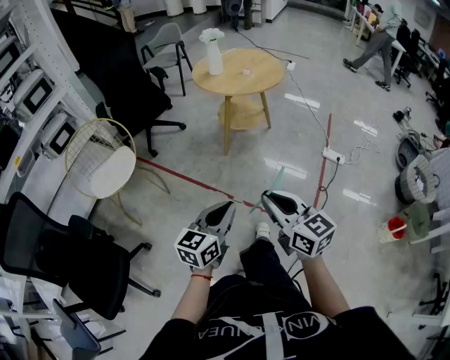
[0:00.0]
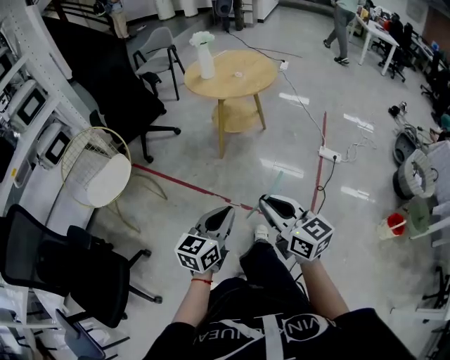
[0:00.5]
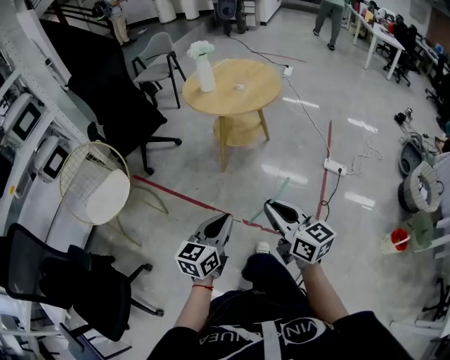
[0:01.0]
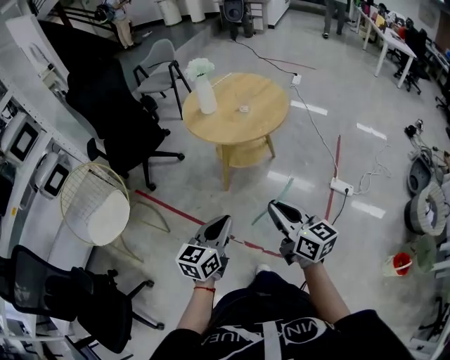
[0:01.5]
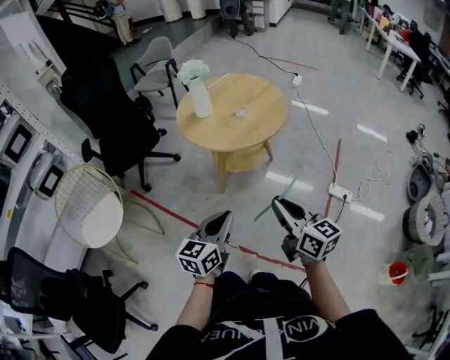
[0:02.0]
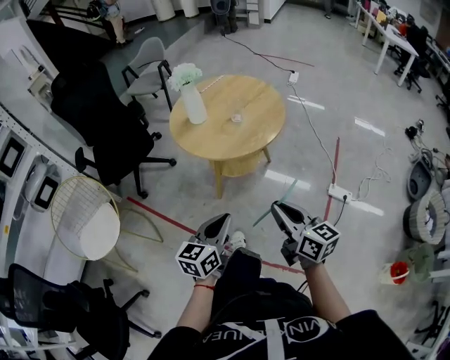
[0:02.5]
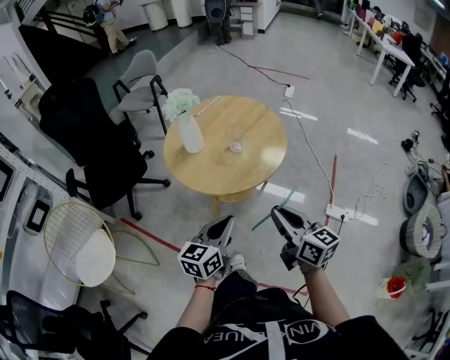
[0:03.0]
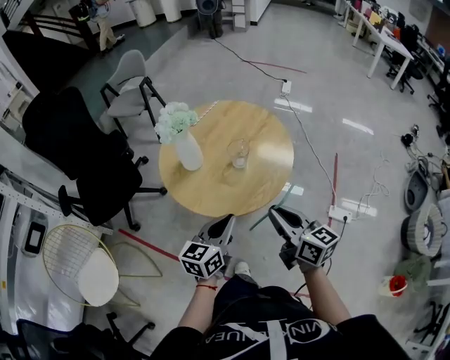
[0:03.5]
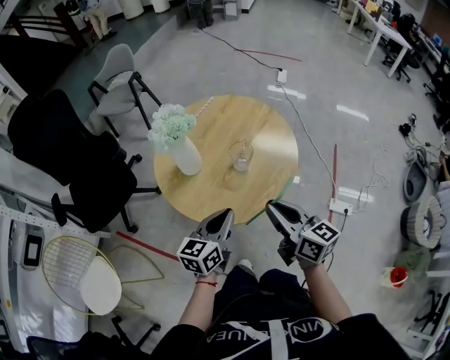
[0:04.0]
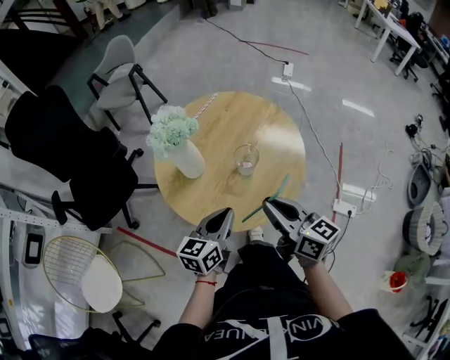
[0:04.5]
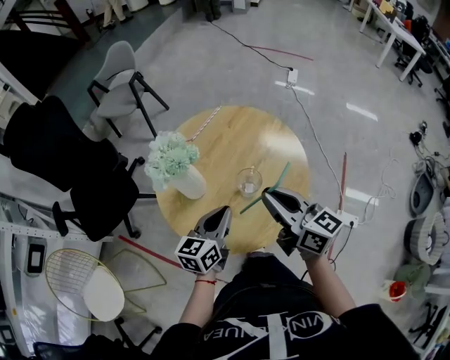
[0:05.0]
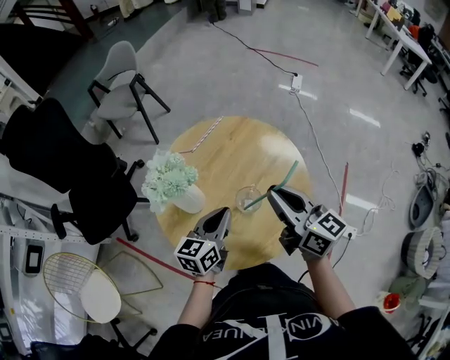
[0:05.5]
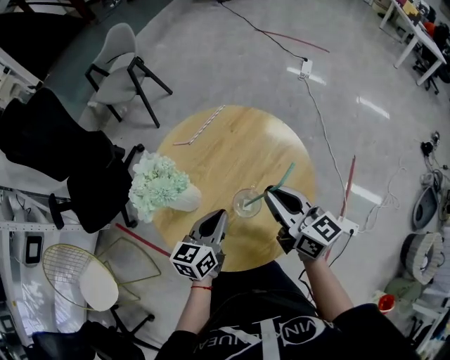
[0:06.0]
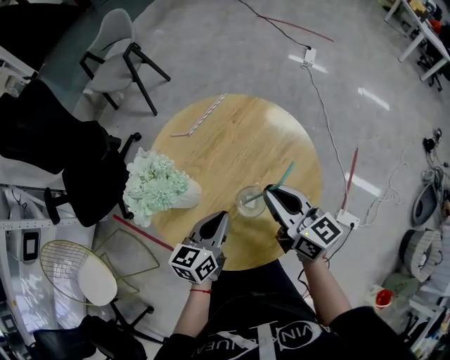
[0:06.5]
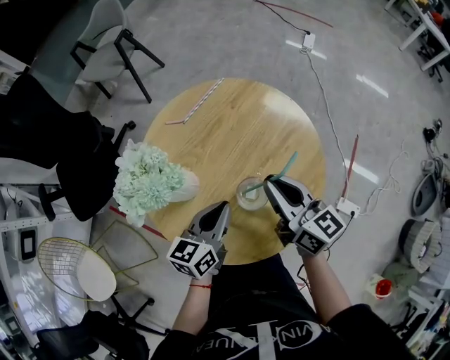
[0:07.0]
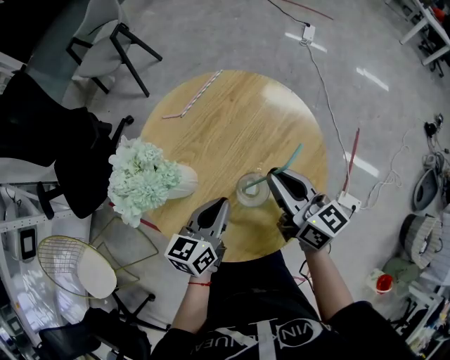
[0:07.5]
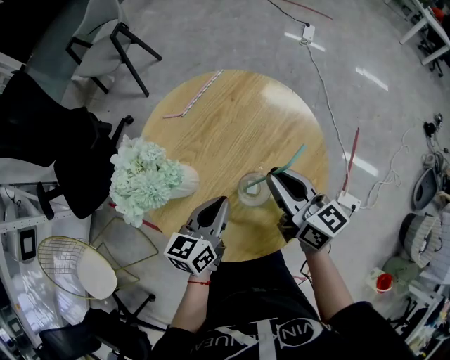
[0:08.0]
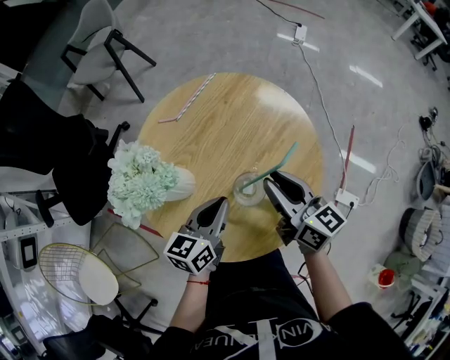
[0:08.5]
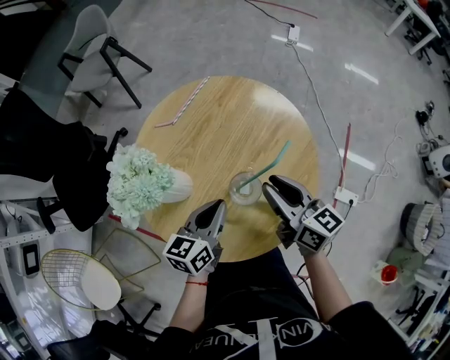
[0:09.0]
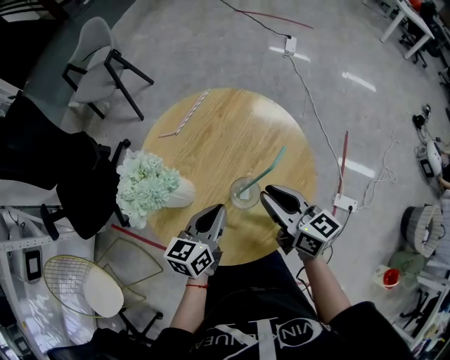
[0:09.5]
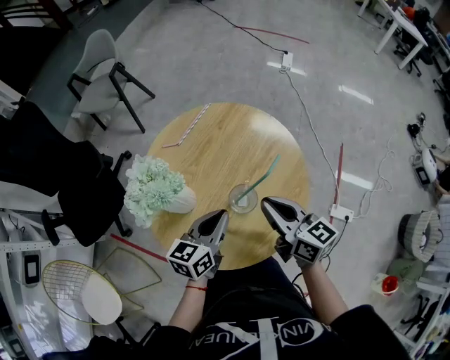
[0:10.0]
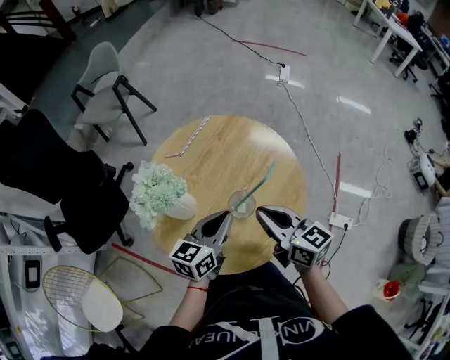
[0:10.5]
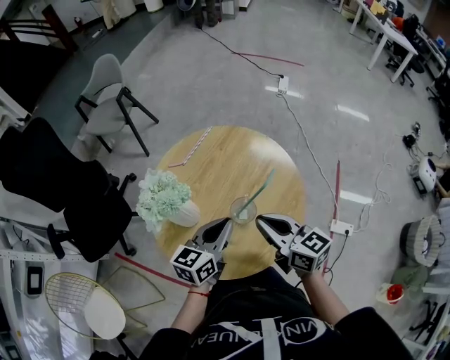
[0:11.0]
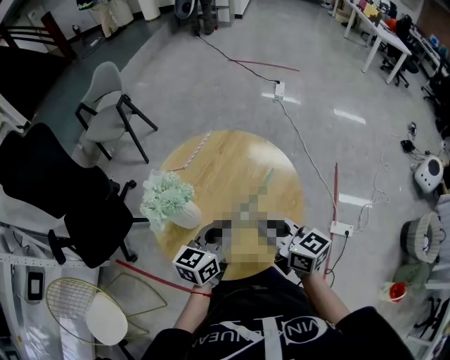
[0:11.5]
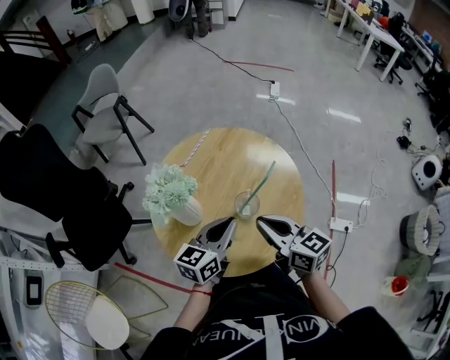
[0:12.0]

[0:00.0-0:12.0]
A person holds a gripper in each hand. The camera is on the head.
0:00.0 to 0:02.0: The two grippers go some 35 cm forward.
0:02.0 to 0:04.0: The two grippers go about 35 cm forward.
0:04.0 to 0:06.0: Both grippers move forward, approximately 20 cm.
0:06.0 to 0:08.0: The right gripper heads downward, covering some 5 cm.
0:08.0 to 0:10.0: The right gripper goes roughly 5 cm backward.
0:10.0 to 0:12.0: The right gripper shifts approximately 5 cm backward; the left gripper shifts by approximately 5 cm.

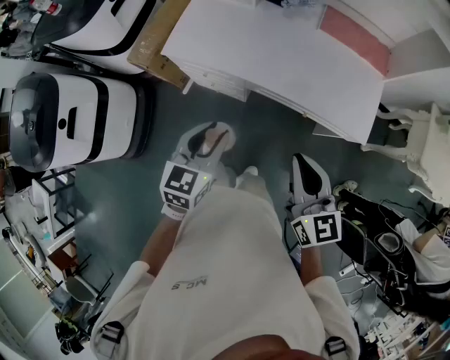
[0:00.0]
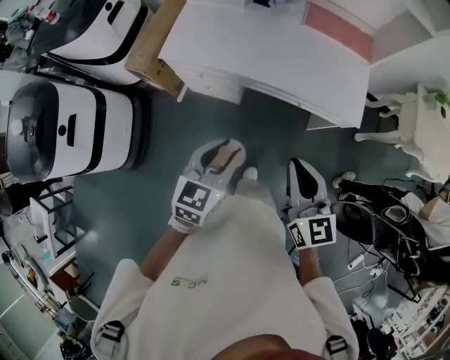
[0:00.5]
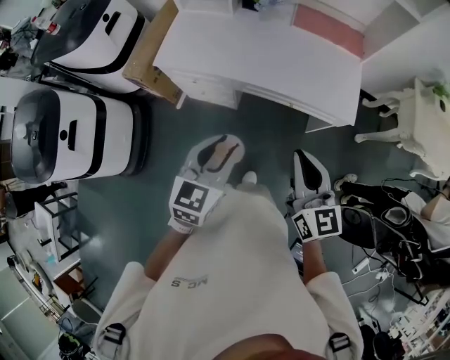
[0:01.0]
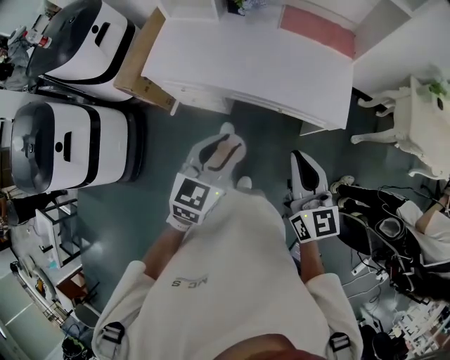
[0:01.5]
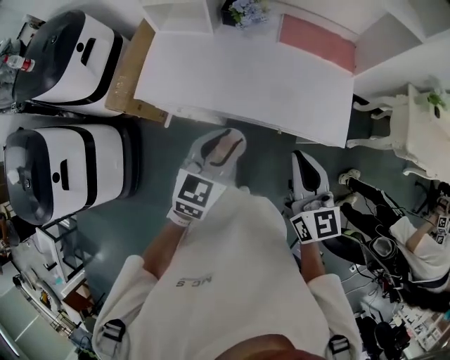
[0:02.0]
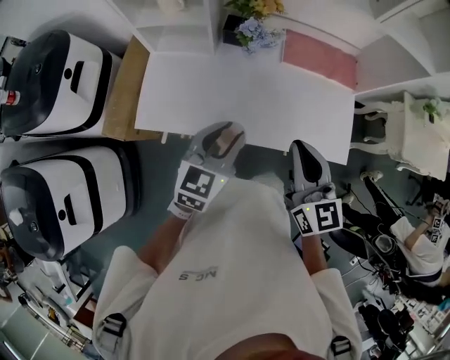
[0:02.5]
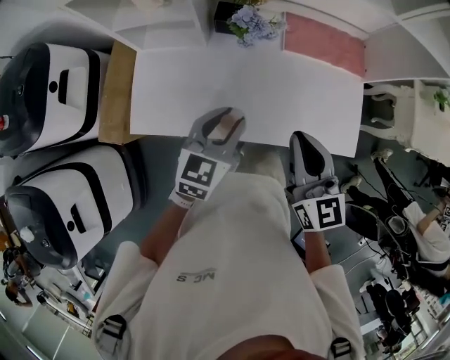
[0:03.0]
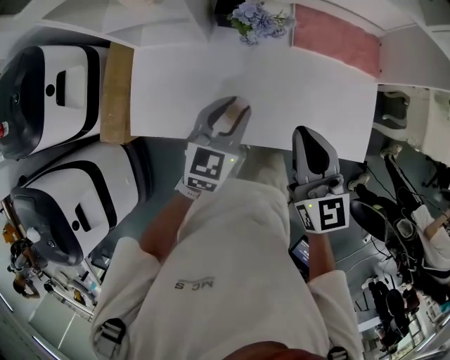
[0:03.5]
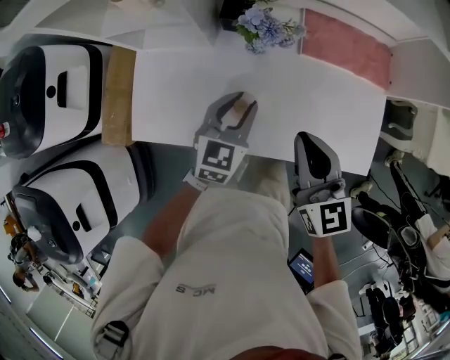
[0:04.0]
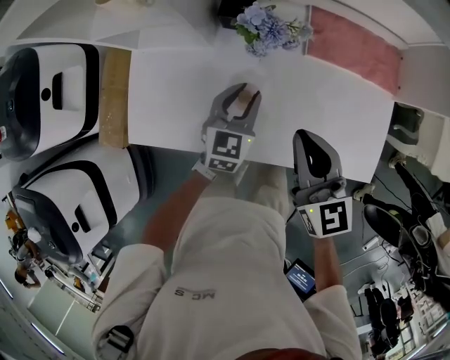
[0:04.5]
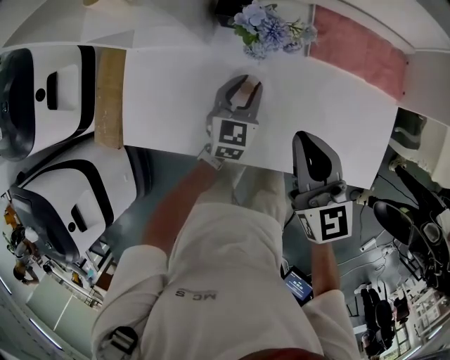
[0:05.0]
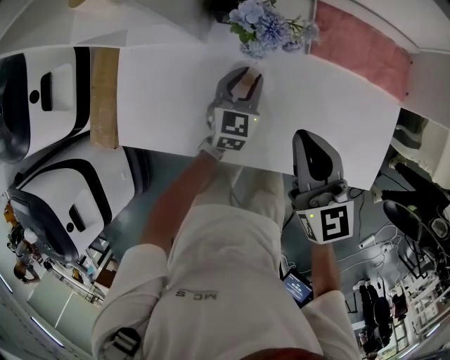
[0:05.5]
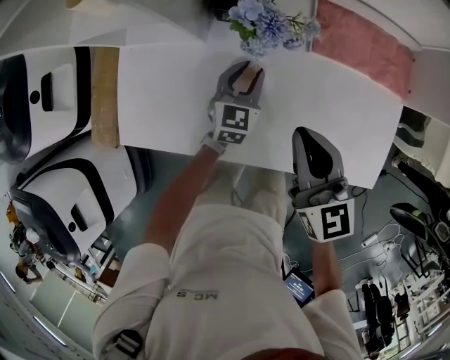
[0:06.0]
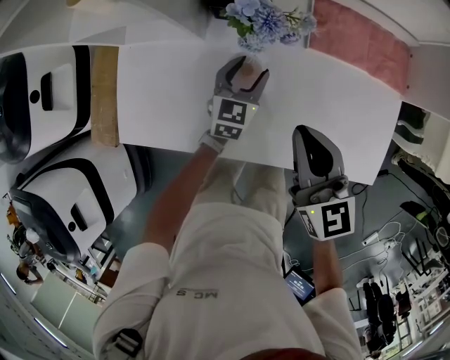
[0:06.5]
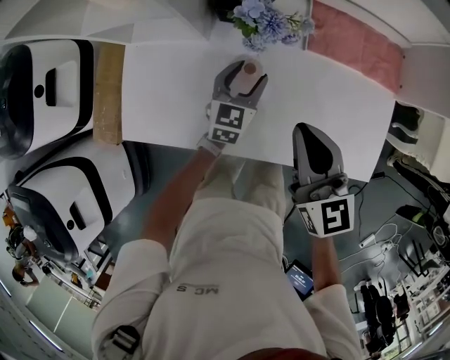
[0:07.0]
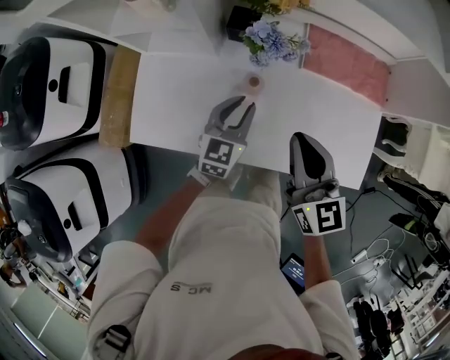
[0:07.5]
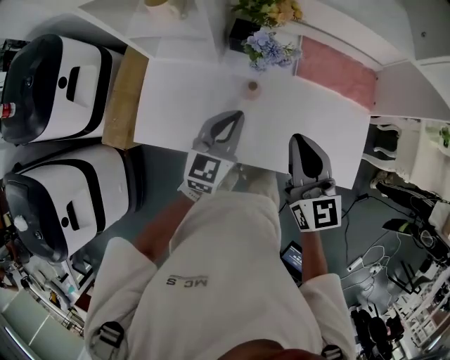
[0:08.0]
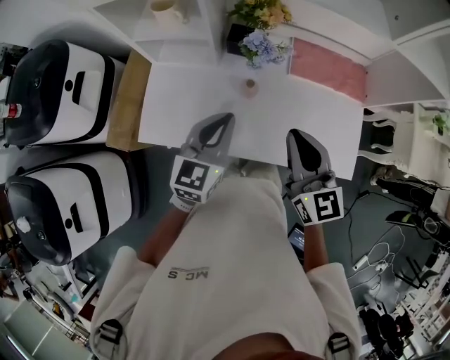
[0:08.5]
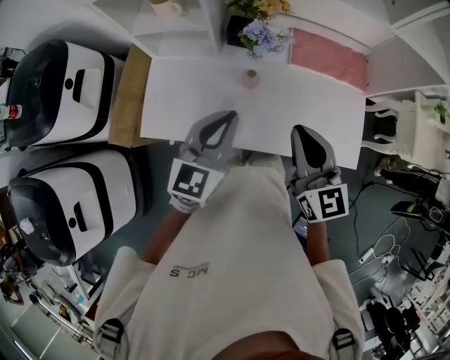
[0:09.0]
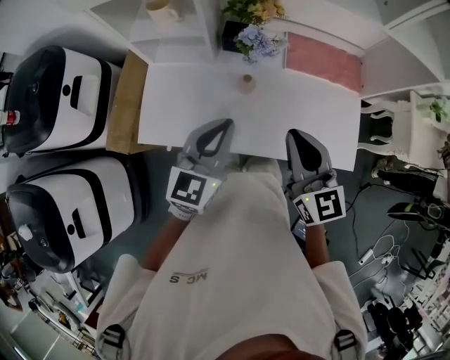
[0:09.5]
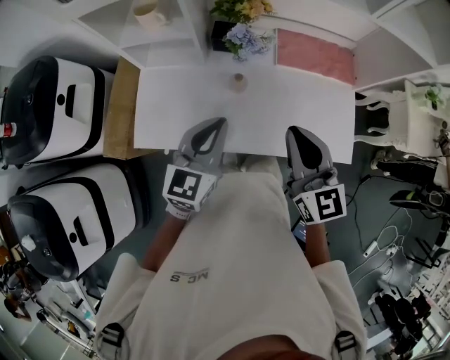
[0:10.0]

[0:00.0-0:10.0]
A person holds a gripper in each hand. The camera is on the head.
0:00.0 to 0:02.0: The right gripper travels forward and to the right by some 10 cm. Meanwhile the left gripper travels to the right and forward by some 15 cm.
0:02.0 to 0:04.0: The left gripper travels forward and downward by approximately 35 cm; the right gripper moves forward, about 30 cm.
0:04.0 to 0:06.0: The right gripper heads downward and forward, covering approximately 10 cm. Meanwhile the left gripper is displaced downward and forward by about 20 cm.
0:06.0 to 0:08.0: The right gripper goes roughly 15 cm upward and backward. Meanwhile the left gripper shifts about 25 cm upward and backward, and closes.
0:08.0 to 0:10.0: The left gripper moves upward and backward, approximately 10 cm. The right gripper moves backward, some 5 cm.

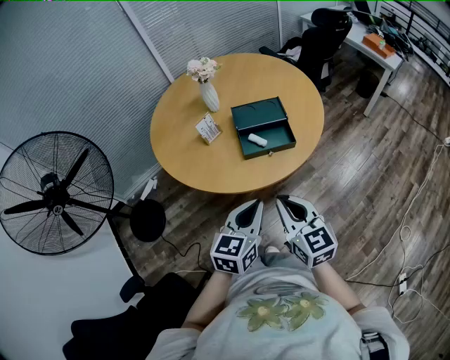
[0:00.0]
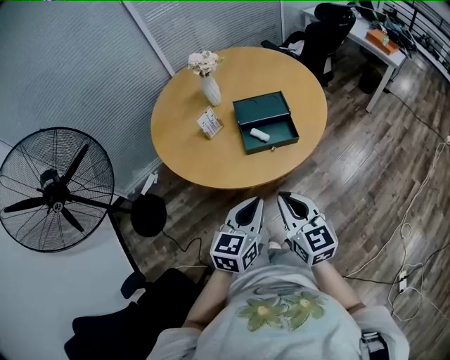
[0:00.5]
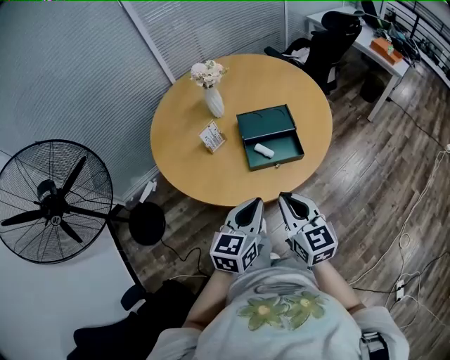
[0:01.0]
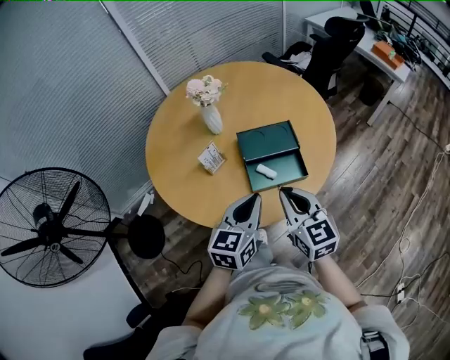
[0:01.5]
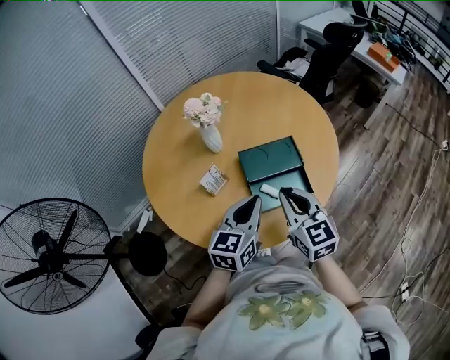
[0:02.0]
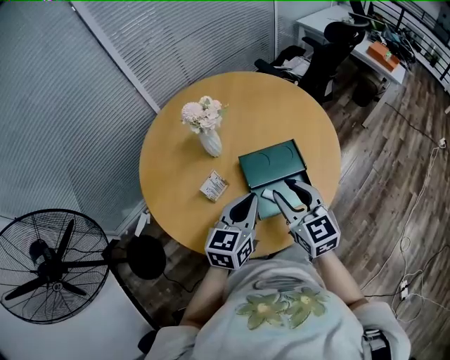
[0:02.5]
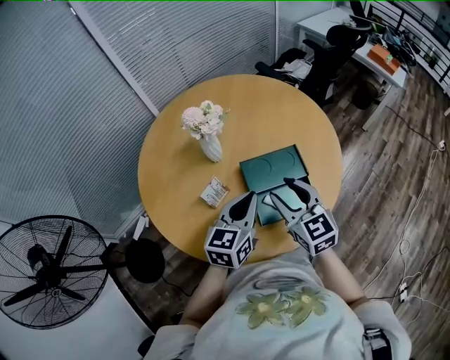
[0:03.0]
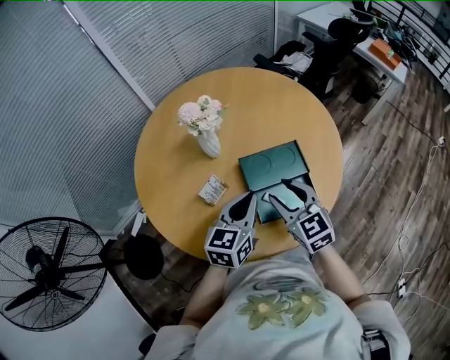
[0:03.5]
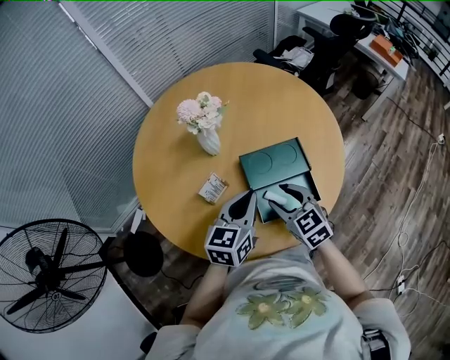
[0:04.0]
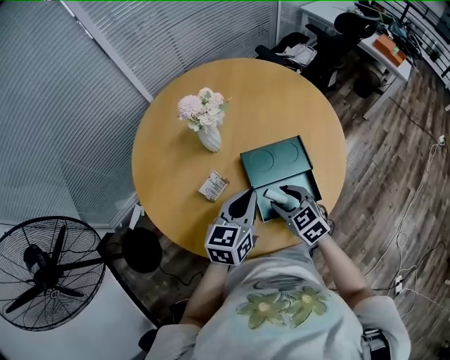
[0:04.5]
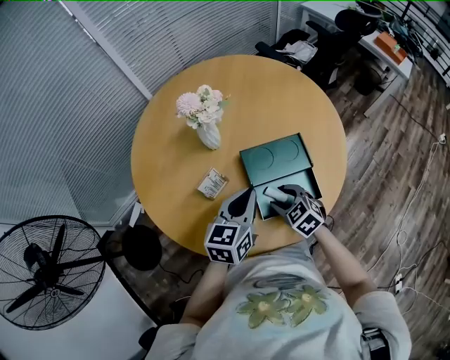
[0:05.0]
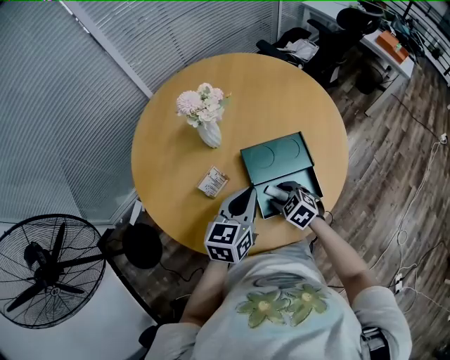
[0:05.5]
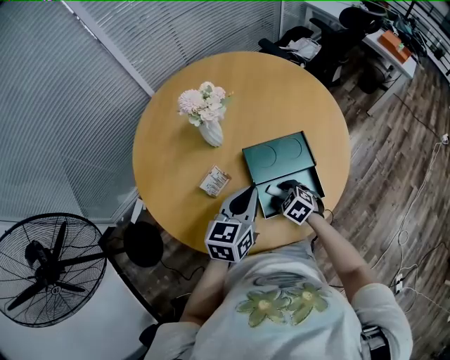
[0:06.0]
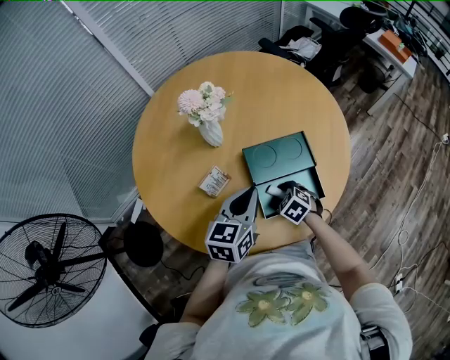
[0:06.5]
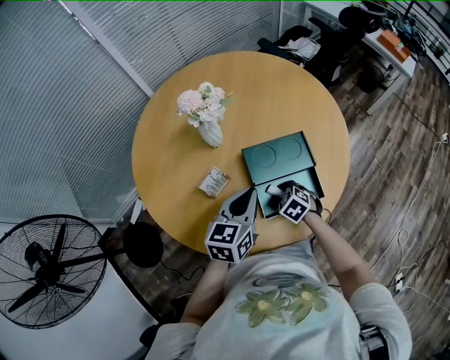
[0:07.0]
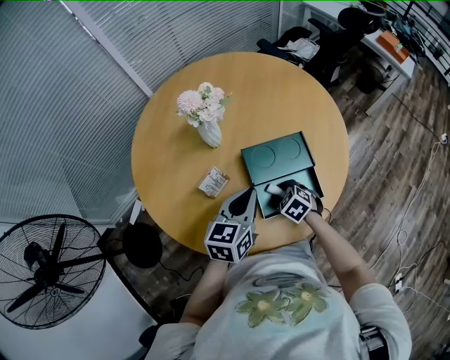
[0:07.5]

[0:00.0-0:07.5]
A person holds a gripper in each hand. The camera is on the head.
0:00.0 to 0:02.0: Both grippers move forward, about 30 cm.
0:02.0 to 0:04.0: The left gripper goes about 10 cm forward. Meanwhile the right gripper moves downward and forward, some 15 cm, changes its angle by about 20 degrees, and opens its fingers.
0:04.0 to 0:05.5: The right gripper is displaced downward by about 15 cm, and swivels about 30 degrees.
0:05.5 to 0:07.5: There are only small adjustments of the grippers.
